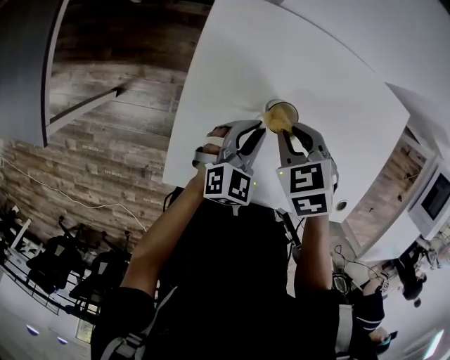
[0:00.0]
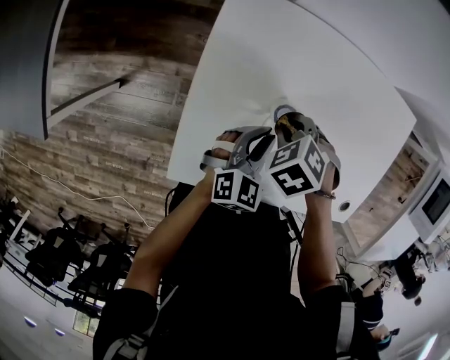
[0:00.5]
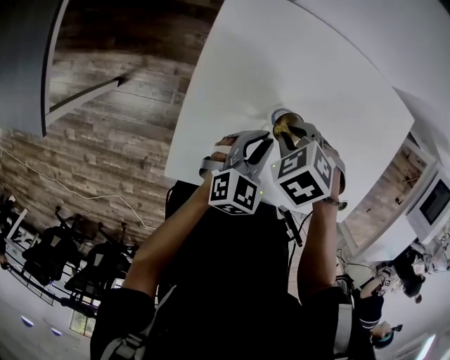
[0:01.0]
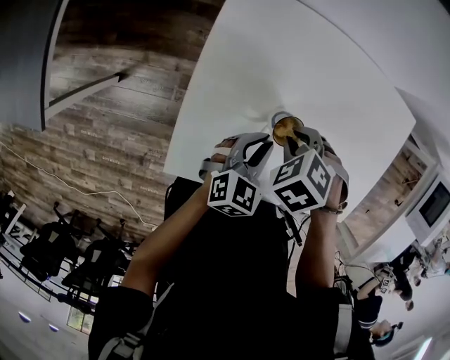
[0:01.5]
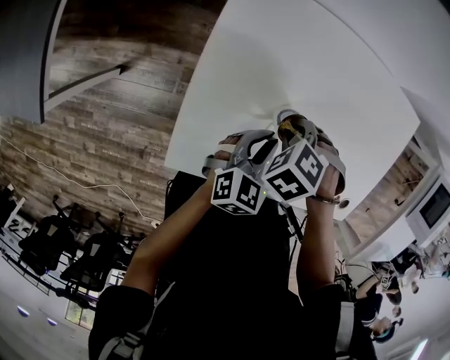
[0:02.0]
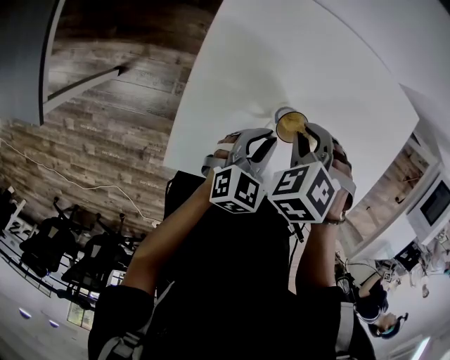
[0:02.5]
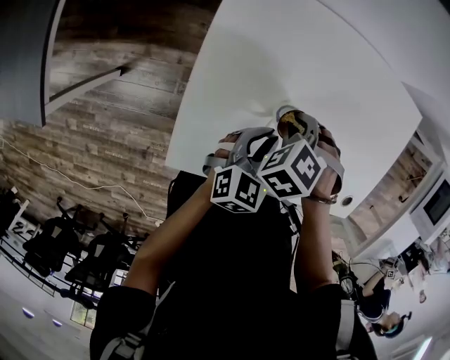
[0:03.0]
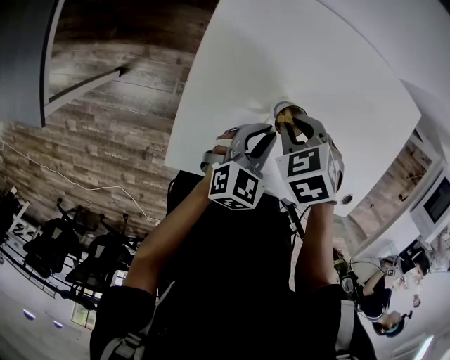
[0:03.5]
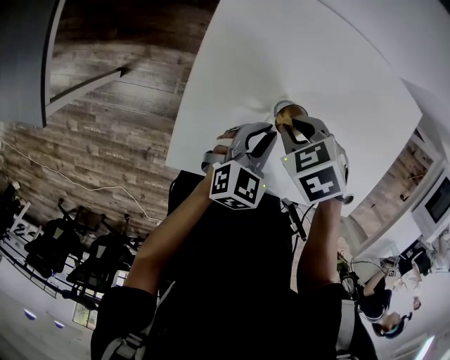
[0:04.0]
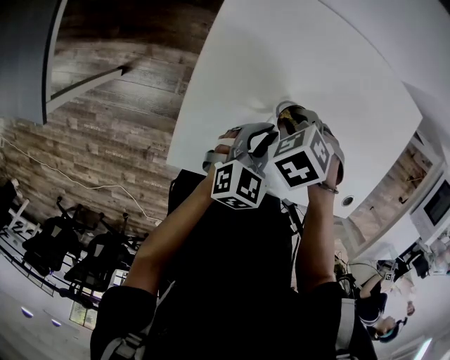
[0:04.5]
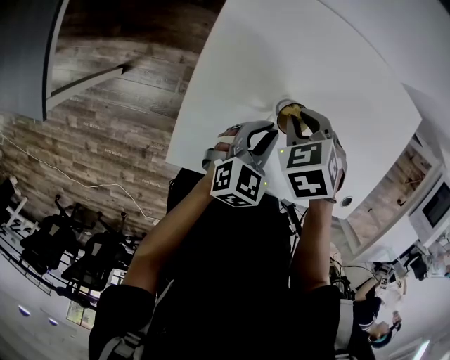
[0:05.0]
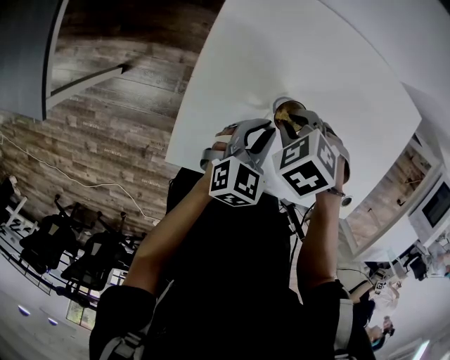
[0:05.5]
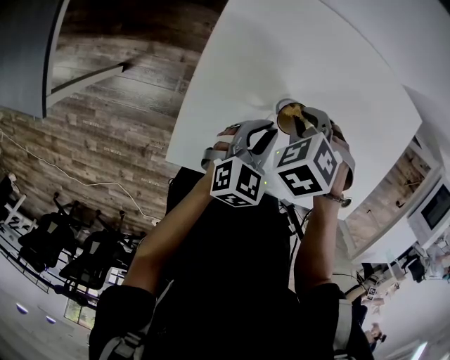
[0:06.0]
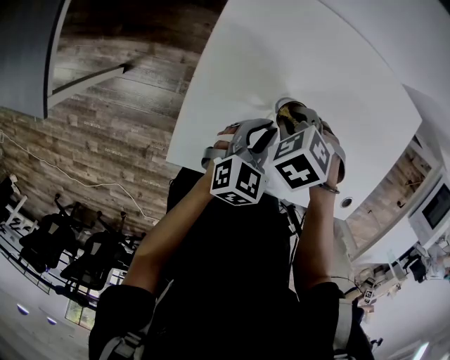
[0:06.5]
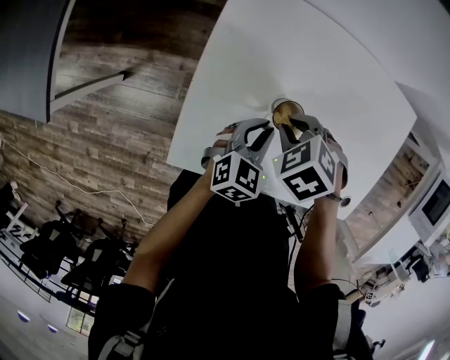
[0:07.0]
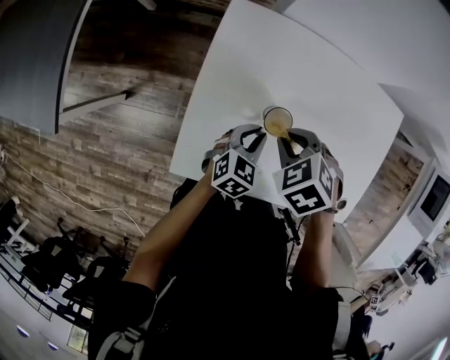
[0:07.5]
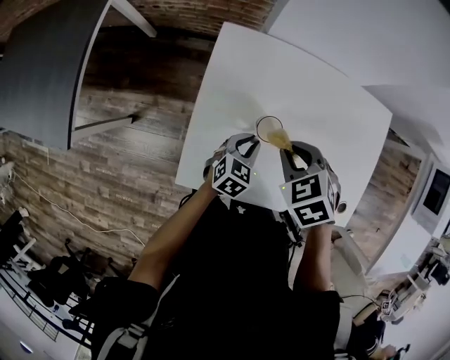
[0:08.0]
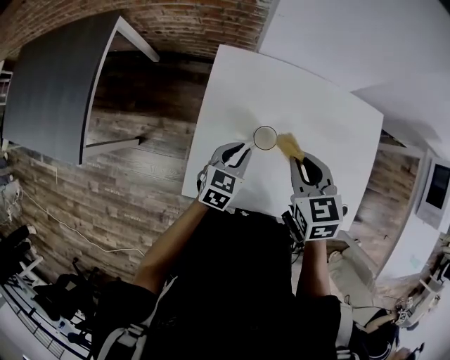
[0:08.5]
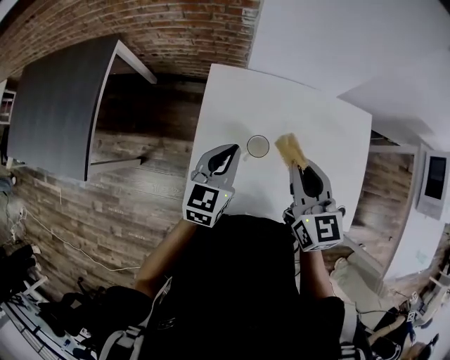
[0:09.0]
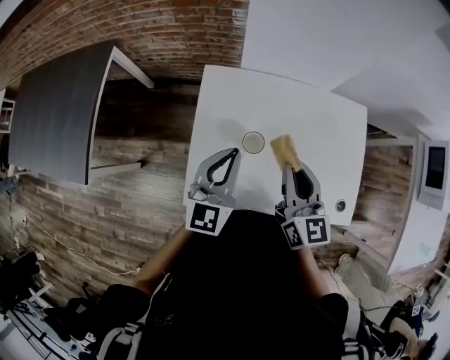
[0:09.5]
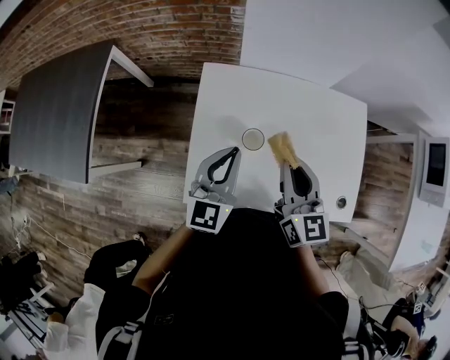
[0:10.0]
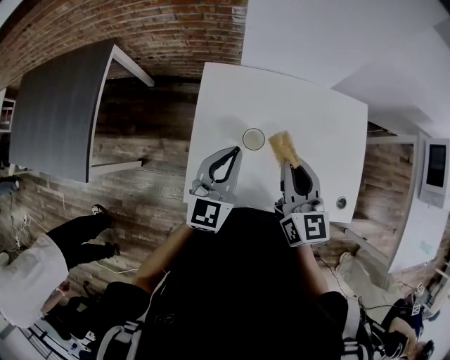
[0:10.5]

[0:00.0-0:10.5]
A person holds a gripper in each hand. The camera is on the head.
0:00.0 to 0:02.0: The right gripper travels downward by approximately 5 cm, and rotates approximately 30 degrees, while the left gripper shifts by roughly 5 cm.
0:02.0 to 0:04.0: The right gripper turns by some 30 degrees.
0:06.5 to 0:08.5: The right gripper is displaced upward by about 20 cm, and tilts its fingers some 40 degrees upward, while the left gripper heads upward, covering approximately 5 cm.
0:08.5 to 0:10.5: The left gripper moves upward, about 15 cm, and changes its angle by roughly 30 degrees, while the right gripper heads upward, covering some 5 cm, and tips its fingers upward by some 30 degrees.

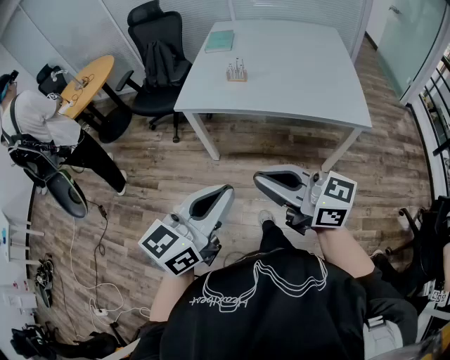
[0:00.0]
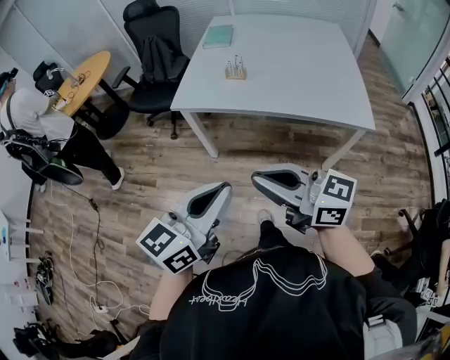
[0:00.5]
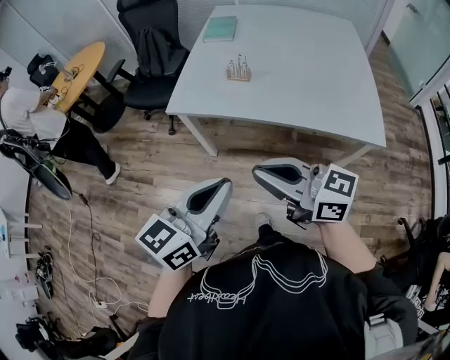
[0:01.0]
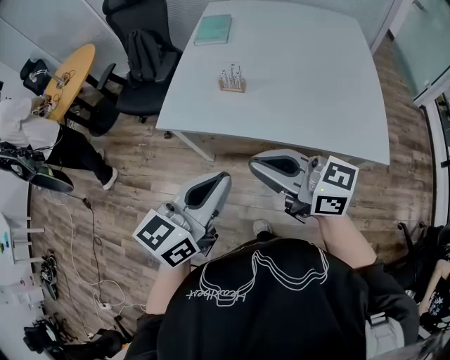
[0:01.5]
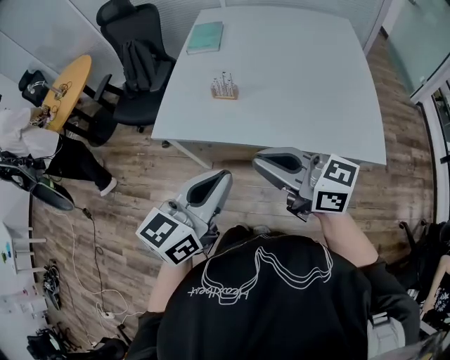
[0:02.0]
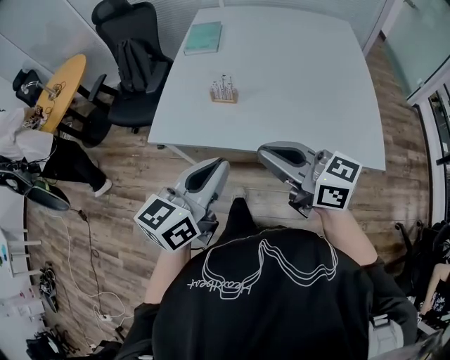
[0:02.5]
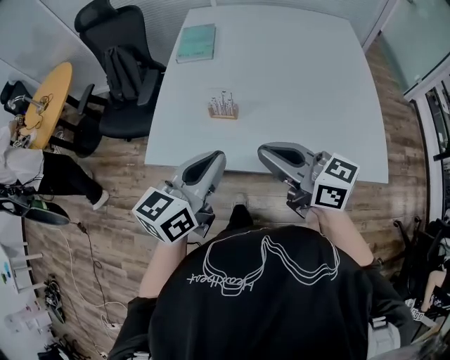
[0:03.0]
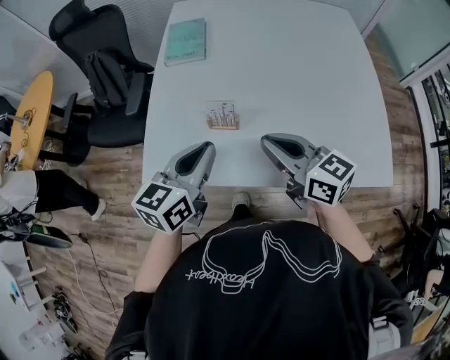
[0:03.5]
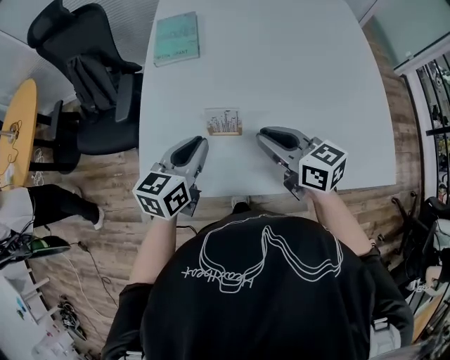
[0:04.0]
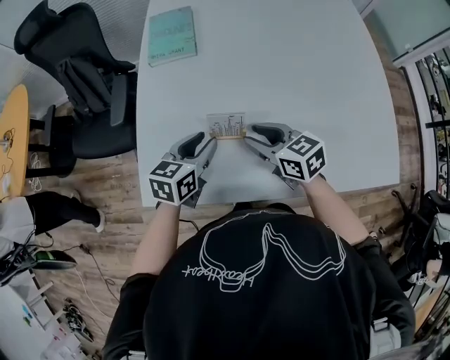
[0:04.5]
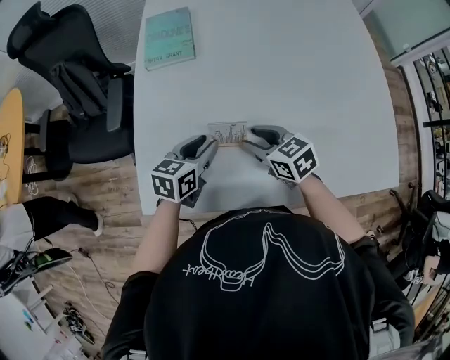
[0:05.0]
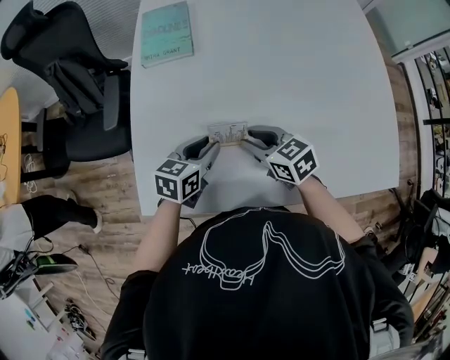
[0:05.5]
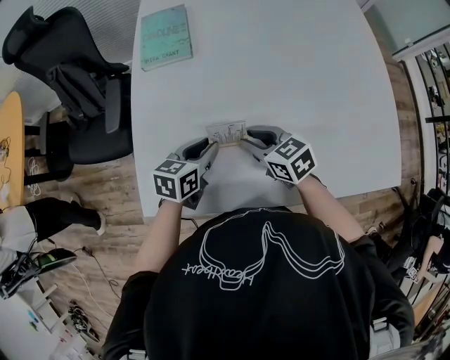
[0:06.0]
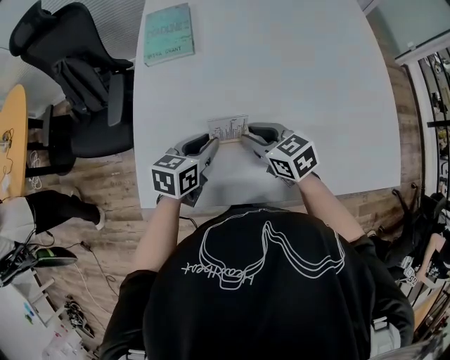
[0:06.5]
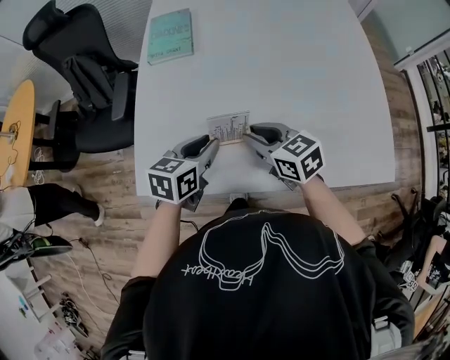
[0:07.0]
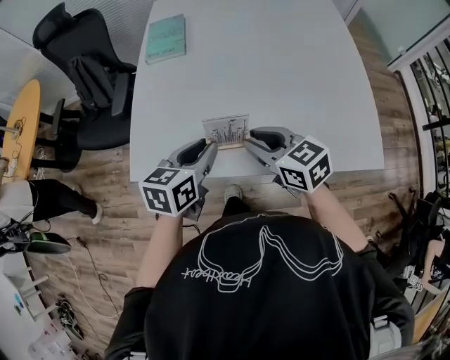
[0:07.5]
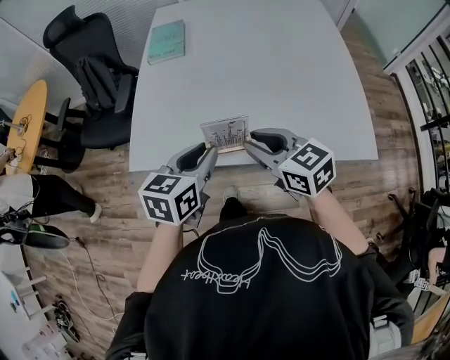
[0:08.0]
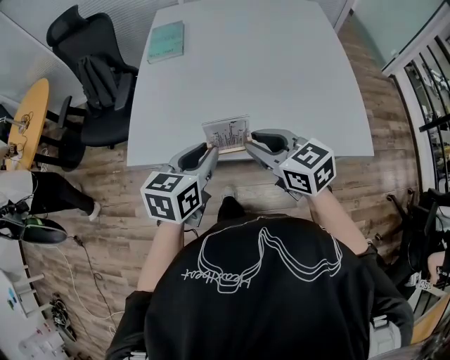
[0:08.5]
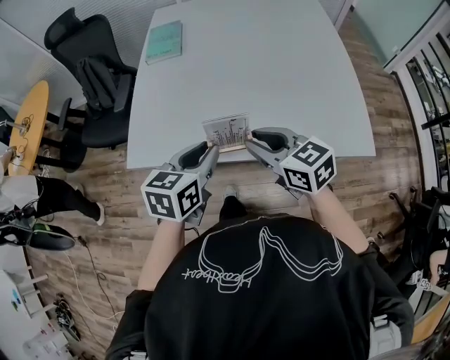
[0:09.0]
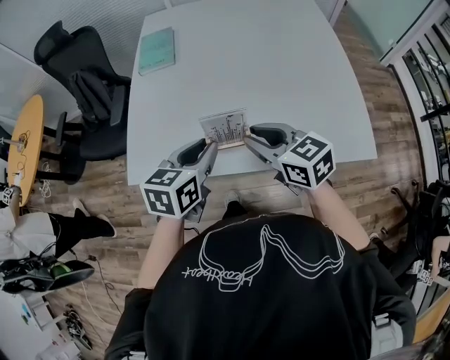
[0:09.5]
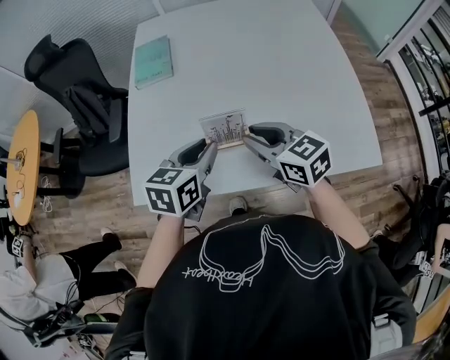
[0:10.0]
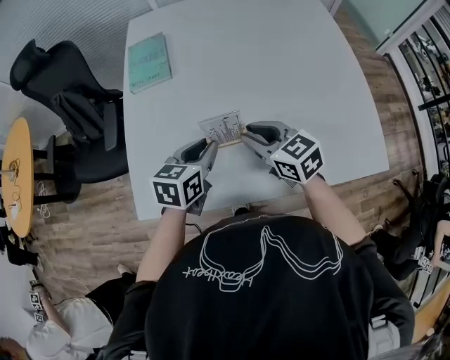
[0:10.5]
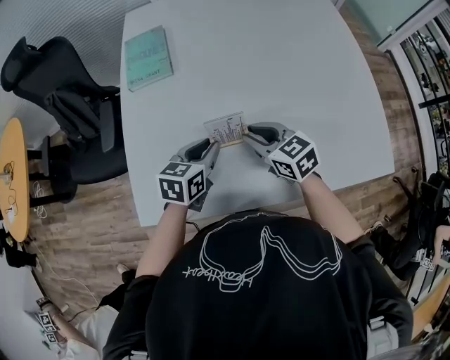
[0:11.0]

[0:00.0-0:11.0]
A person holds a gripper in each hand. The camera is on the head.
0:00.0 to 0:02.0: Both grippers travel together forward and to the right, roughly 30 cm.
0:02.0 to 0:03.5: Both grippers travel together forward, roughly 25 cm. The right gripper swivels some 30 degrees.
0:03.5 to 0:05.5: The two grippers go approximately 25 cm downward and forward. The right gripper swivels approximately 30 degrees, and opens up. The left gripper swivels about 20 degrees, and opens up.
0:05.5 to 0:07.5: Both grippers move backward, upward and to the right, roughly 20 cm.
0:07.5 to 0:09.0: Both grippers move backward, about 10 cm.
0:09.0 to 0:11.0: Both grippers move forward and downward, approximately 25 cm.

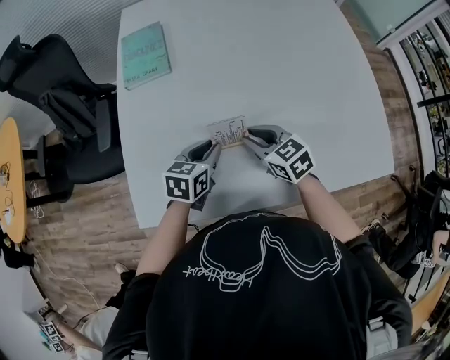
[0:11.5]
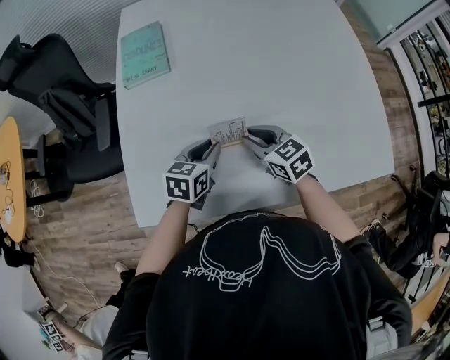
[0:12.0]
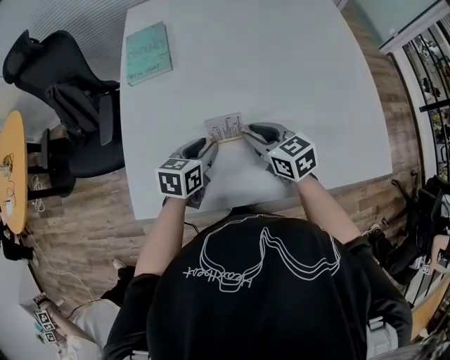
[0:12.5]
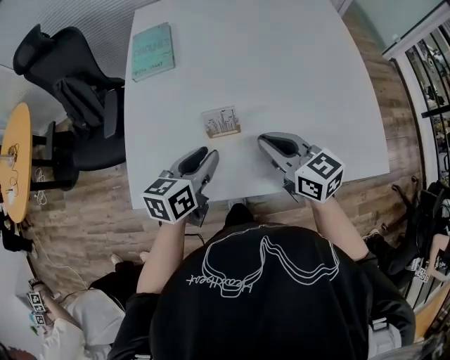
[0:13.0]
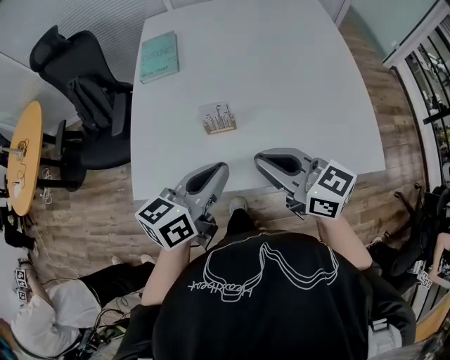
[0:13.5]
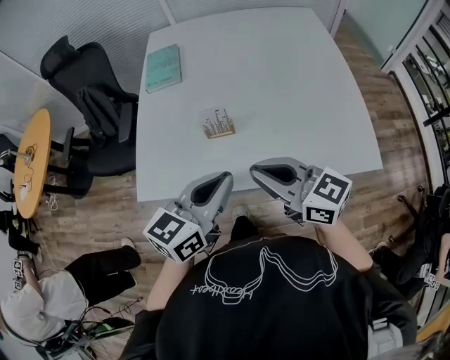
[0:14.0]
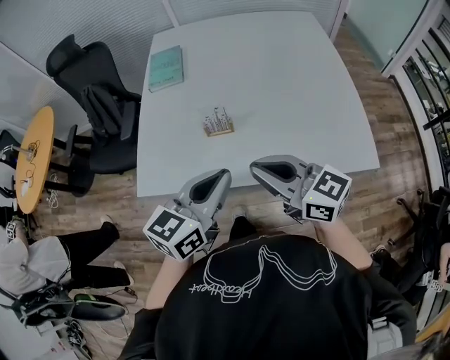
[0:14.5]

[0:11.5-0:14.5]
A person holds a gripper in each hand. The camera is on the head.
0:11.5 to 0:13.0: Both grippers travel together upward and backward, approximately 15 cm.
0:13.0 to 0:14.5: The left gripper heads backward, upward and to the right, covering roughly 20 cm, swivels roughly 20 degrees, and closes. The right gripper is displaced backward and upward by roughly 20 cm.

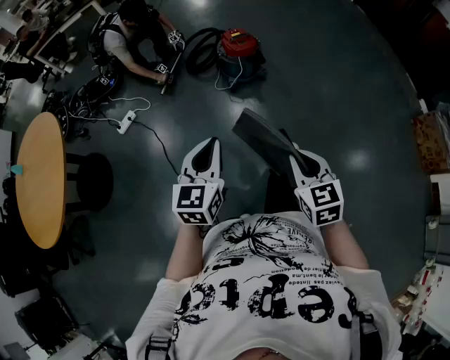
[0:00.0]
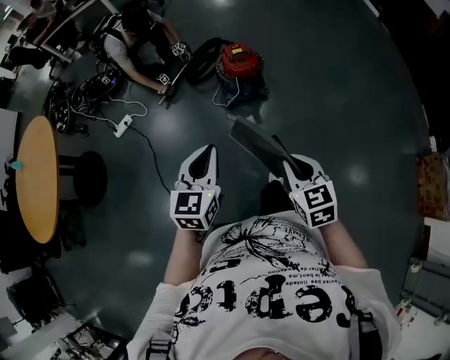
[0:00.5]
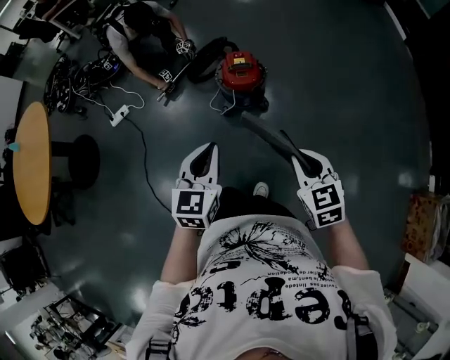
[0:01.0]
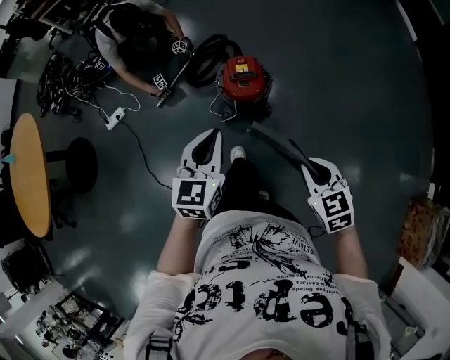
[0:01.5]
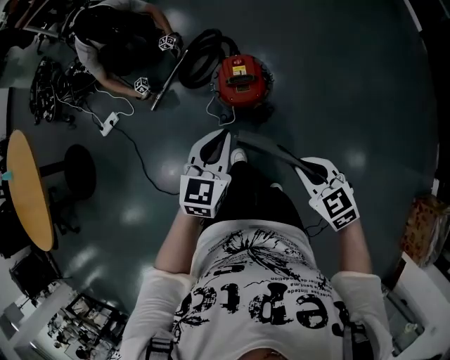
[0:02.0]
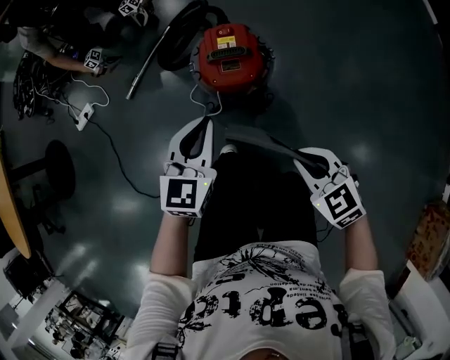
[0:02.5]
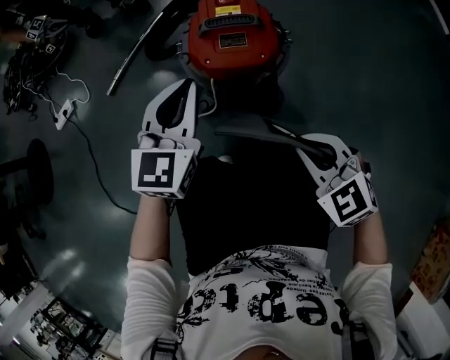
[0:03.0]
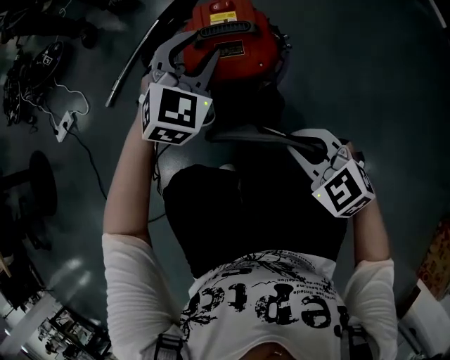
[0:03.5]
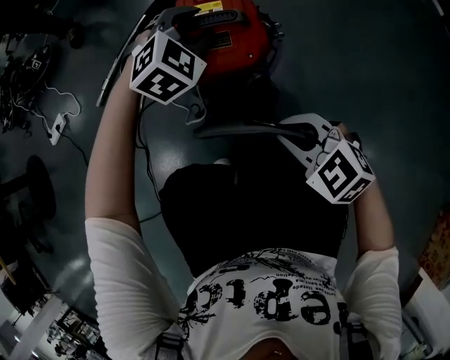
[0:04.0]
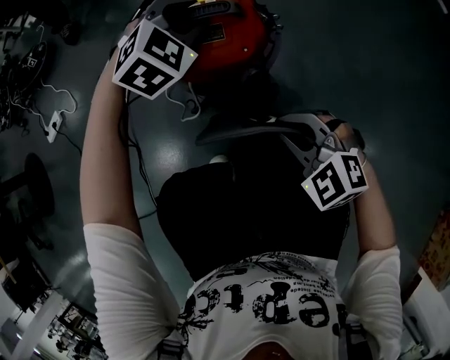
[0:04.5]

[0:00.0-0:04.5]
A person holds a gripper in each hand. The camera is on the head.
0:00.0 to 0:02.0: The pair of grippers is taken forward and to the right, some 70 cm. The right gripper changes its angle by approximately 40 degrees.
0:02.0 to 0:04.5: The right gripper moves downward, some 50 cm, and turns by approximately 40 degrees; the left gripper travels downward and forward by roughly 50 cm, twists some 50 degrees clockwise, seen from behind, and opens.
